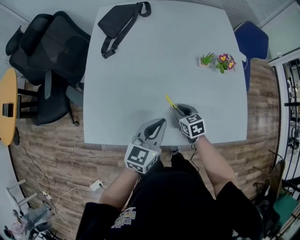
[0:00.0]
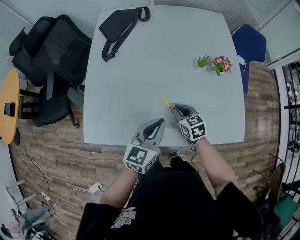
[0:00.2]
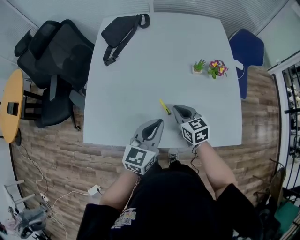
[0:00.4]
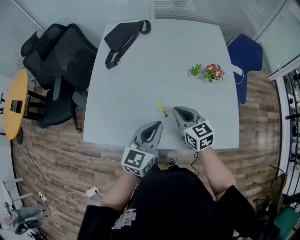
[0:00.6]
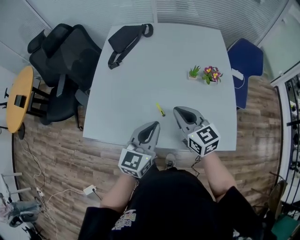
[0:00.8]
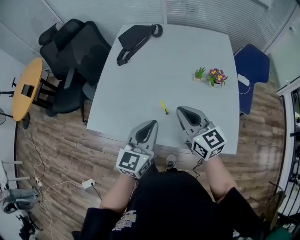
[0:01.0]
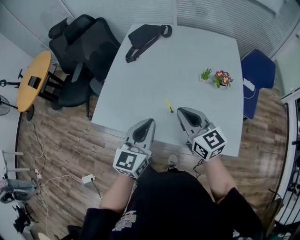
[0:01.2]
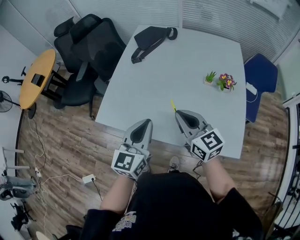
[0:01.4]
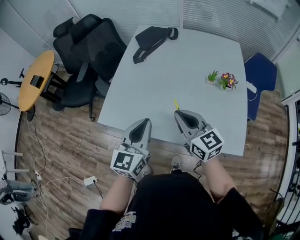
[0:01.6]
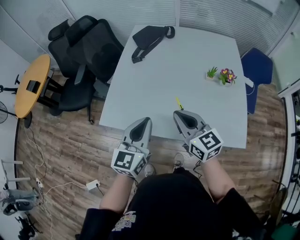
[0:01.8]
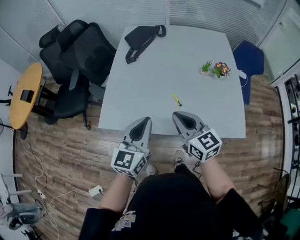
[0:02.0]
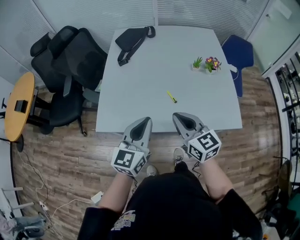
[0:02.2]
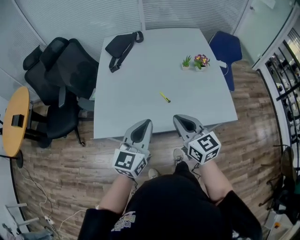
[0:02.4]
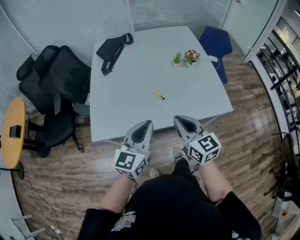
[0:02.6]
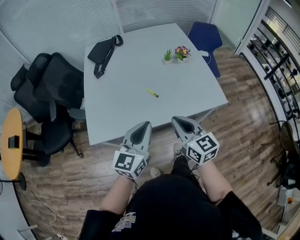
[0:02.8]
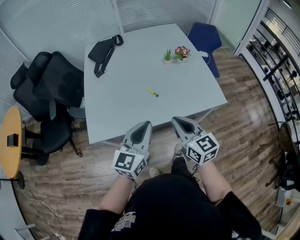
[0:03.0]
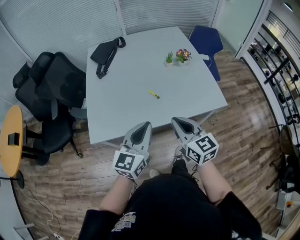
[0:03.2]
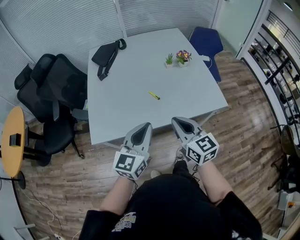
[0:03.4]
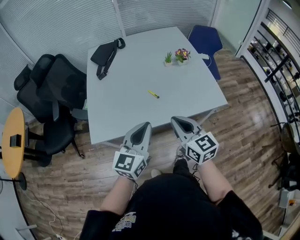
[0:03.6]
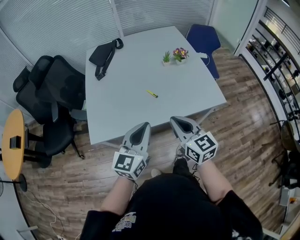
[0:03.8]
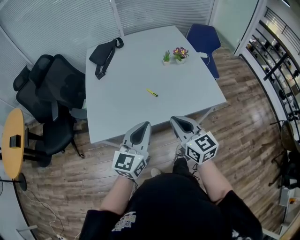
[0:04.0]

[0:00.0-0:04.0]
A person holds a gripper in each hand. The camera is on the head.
0:00.0 to 0:01.4: The right gripper moves upward, some 30 cm, and tips its fingers upward by about 40 degrees; the left gripper is displaced upward and backward by approximately 15 cm, and swivels roughly 30 degrees.
0:01.4 to 0:02.6: The right gripper shifts by approximately 15 cm, and changes its angle by roughly 30 degrees; the left gripper changes place by roughly 10 cm, and swivels approximately 30 degrees.
0:02.6 to 0:04.0: The grippers make only small movements.

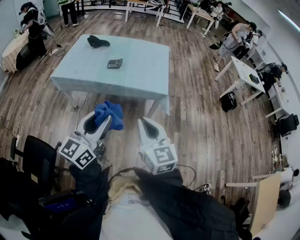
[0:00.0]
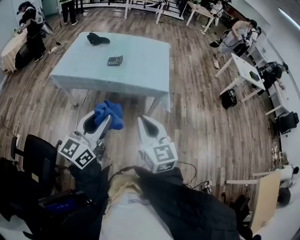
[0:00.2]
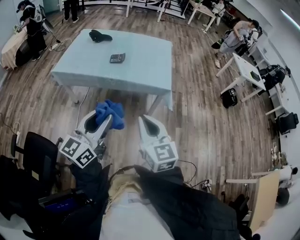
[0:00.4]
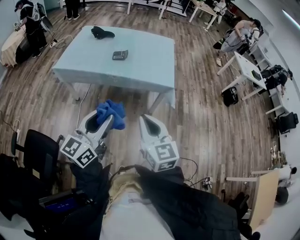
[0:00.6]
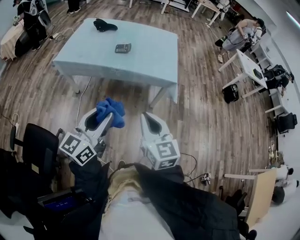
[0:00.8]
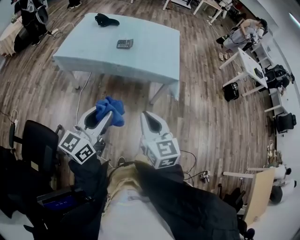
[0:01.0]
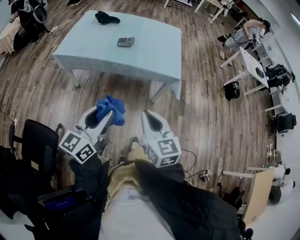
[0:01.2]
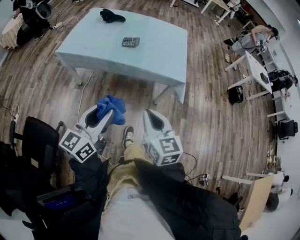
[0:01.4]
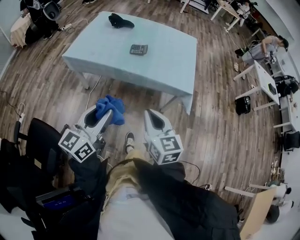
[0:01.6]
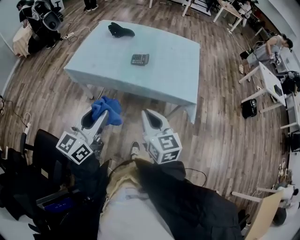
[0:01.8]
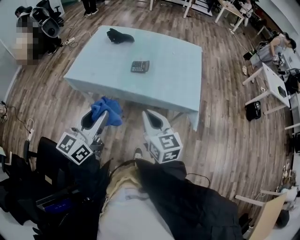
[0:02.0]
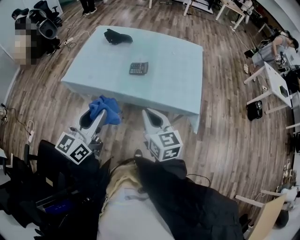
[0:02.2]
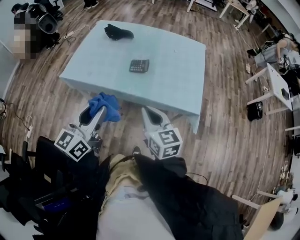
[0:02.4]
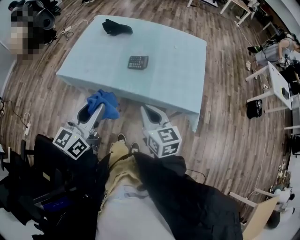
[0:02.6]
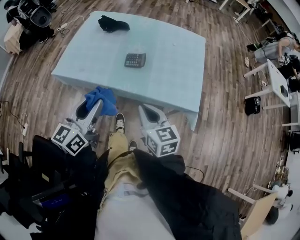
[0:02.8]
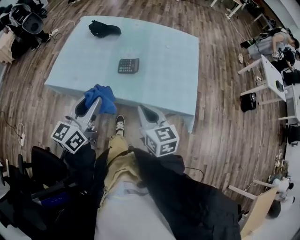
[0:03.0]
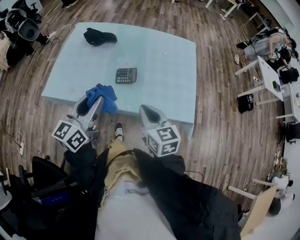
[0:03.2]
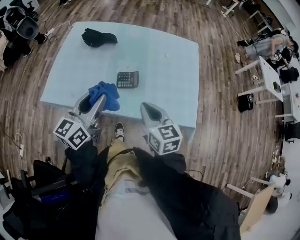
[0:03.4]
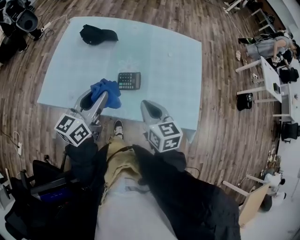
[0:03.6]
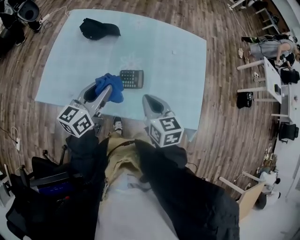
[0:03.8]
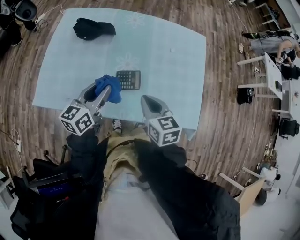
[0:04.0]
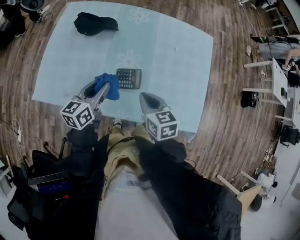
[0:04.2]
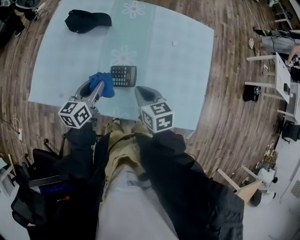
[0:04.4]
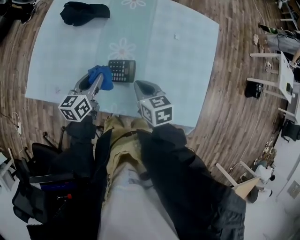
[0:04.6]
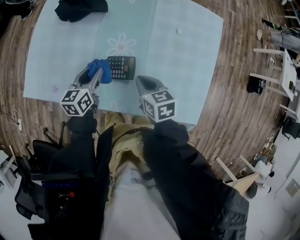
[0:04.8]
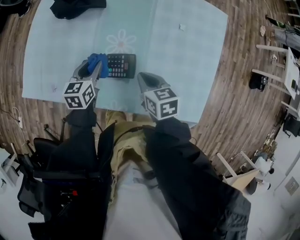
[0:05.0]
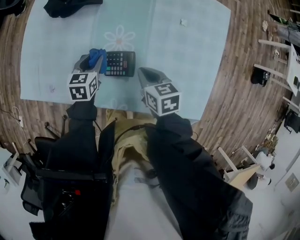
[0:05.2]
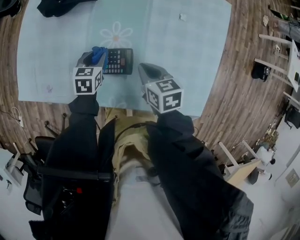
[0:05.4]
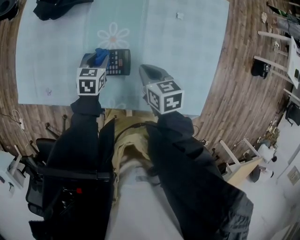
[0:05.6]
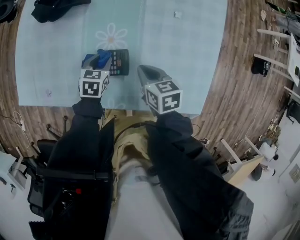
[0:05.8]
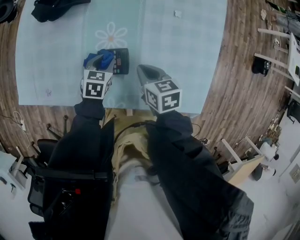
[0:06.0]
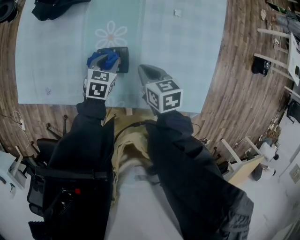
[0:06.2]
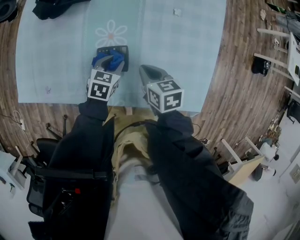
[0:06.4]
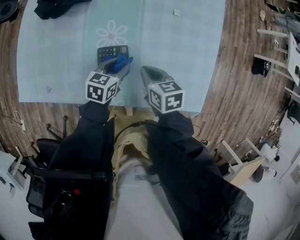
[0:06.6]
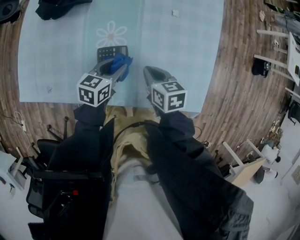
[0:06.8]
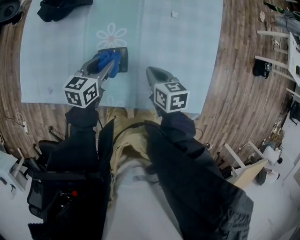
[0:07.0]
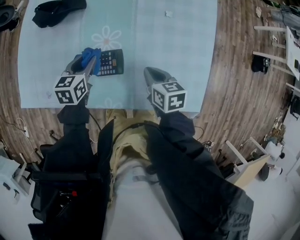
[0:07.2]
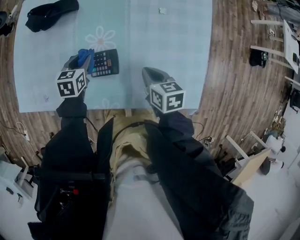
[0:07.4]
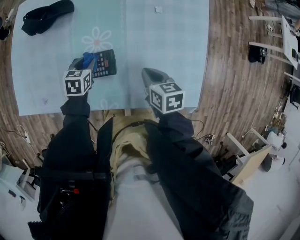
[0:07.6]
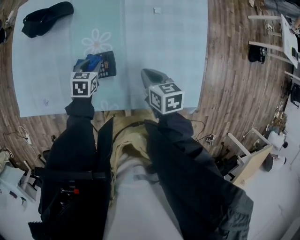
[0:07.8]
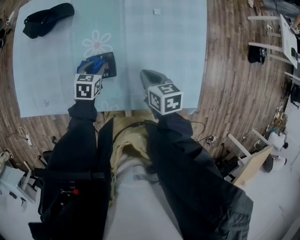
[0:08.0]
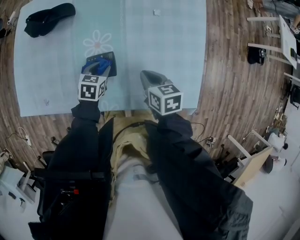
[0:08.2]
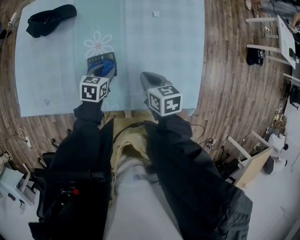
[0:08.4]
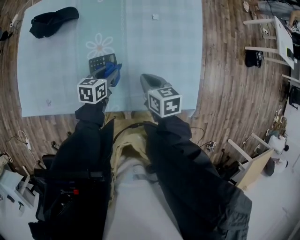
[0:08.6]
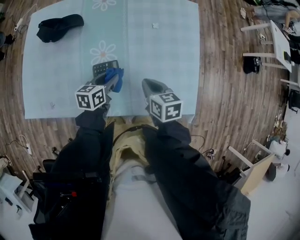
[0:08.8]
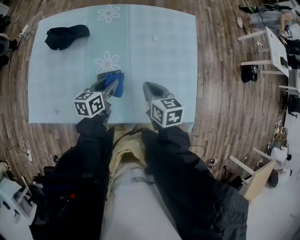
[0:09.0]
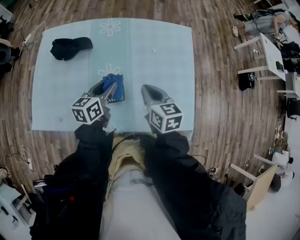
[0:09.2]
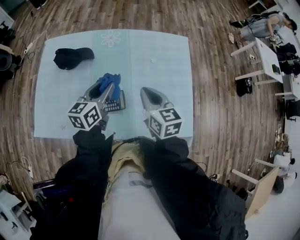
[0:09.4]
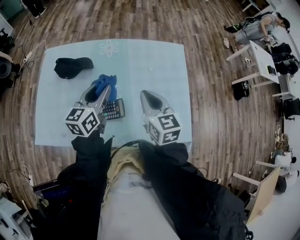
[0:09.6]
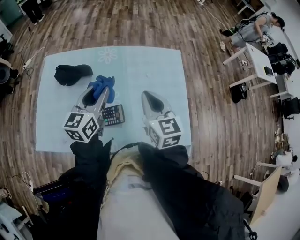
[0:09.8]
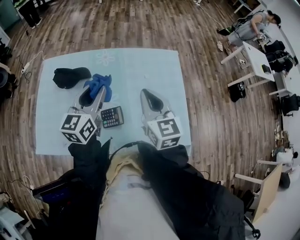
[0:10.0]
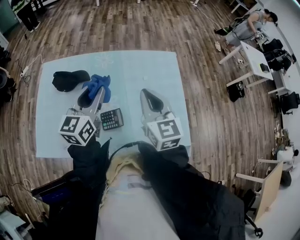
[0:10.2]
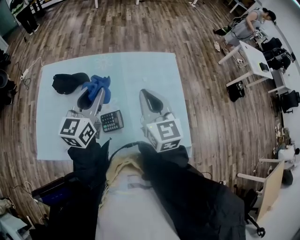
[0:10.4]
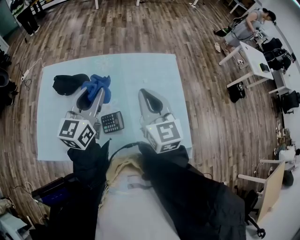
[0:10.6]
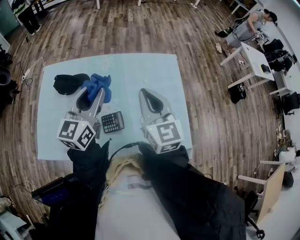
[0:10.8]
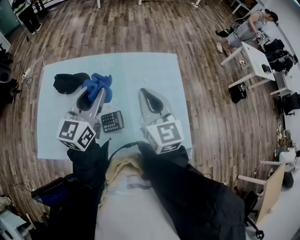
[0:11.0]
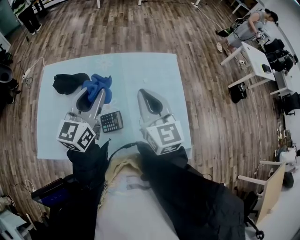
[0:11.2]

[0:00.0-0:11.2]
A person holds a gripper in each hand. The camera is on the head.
0:00.0 to 0:01.6: Both grippers move to the left, forward and downward, about 15 cm.
0:01.6 to 0:03.2: The grippers both shift forward by roughly 35 cm.
0:03.2 to 0:04.8: Both grippers move forward and downward, about 30 cm. The right gripper swivels approximately 30 degrees. Meanwhile the left gripper changes its angle by about 30 degrees.
0:04.8 to 0:06.4: The left gripper travels to the right and downward by some 15 cm, and turns by some 30 degrees, while the right gripper shifts by about 5 cm.
0:06.4 to 0:08.0: The left gripper reaches some 10 cm to the left, then returns.
0:08.0 to 0:09.6: Both grippers travel together upward, some 25 cm. The right gripper turns by approximately 30 degrees; the left gripper tips its fingers upward by about 40 degrees.
0:09.6 to 0:11.2: Both grippers move upward, roughly 10 cm.

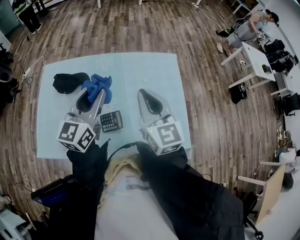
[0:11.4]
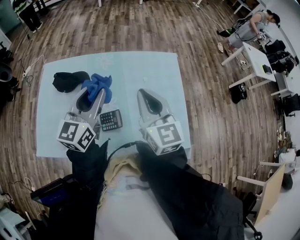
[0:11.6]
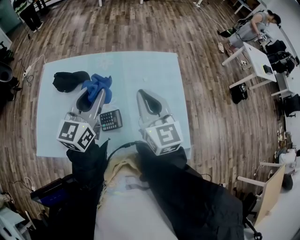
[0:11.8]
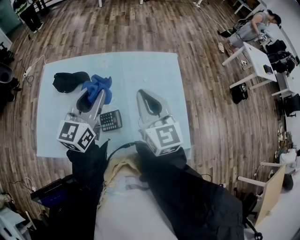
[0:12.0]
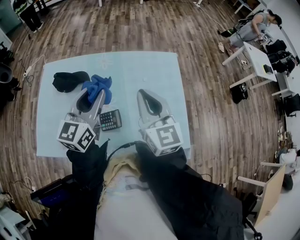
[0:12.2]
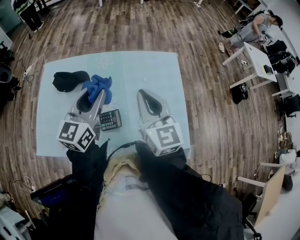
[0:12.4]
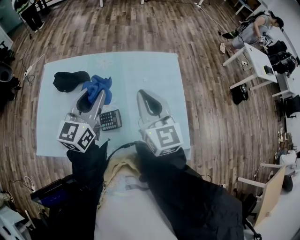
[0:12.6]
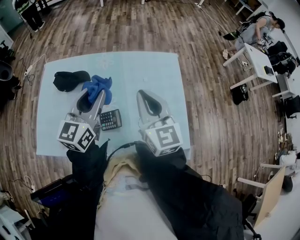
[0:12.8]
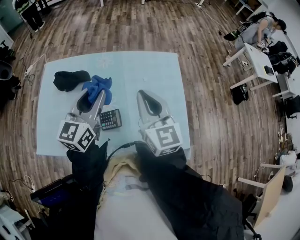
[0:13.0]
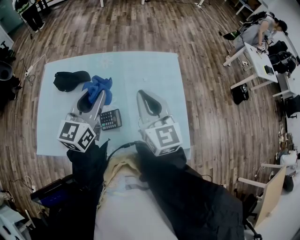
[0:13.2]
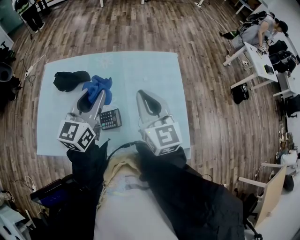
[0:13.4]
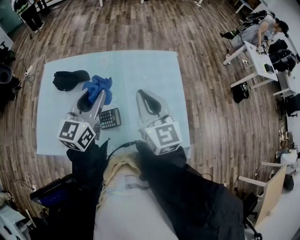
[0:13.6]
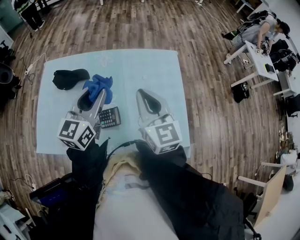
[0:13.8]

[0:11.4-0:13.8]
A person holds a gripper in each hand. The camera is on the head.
0:11.4 to 0:12.6: Both grippers stay about where they are.
0:12.6 to 0:13.8: Both grippers stay put.

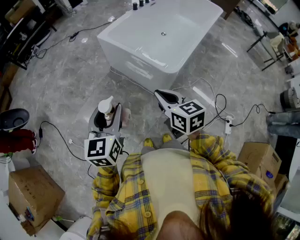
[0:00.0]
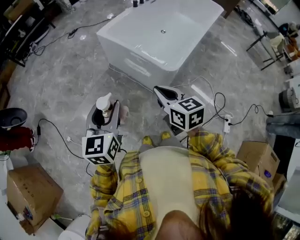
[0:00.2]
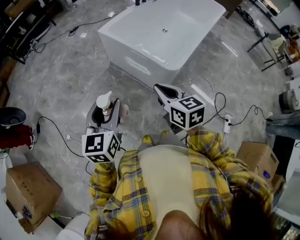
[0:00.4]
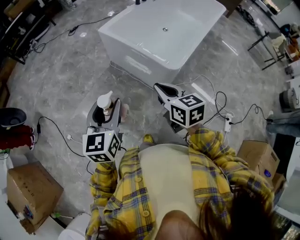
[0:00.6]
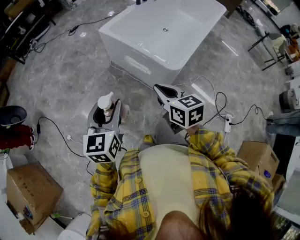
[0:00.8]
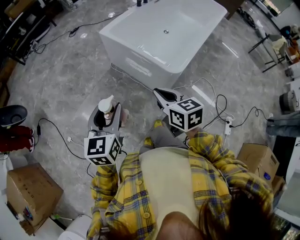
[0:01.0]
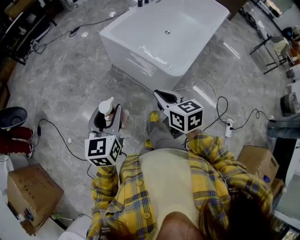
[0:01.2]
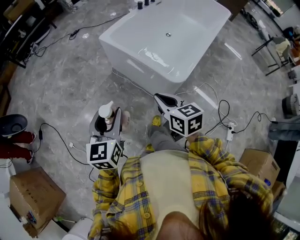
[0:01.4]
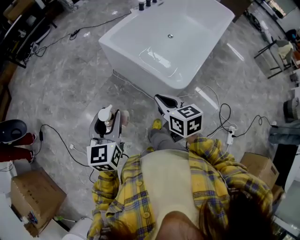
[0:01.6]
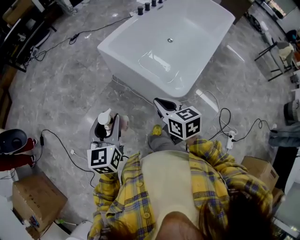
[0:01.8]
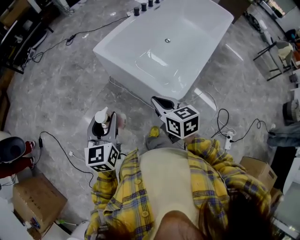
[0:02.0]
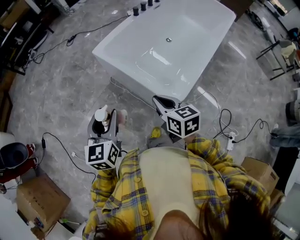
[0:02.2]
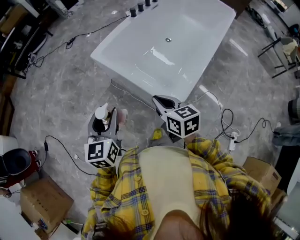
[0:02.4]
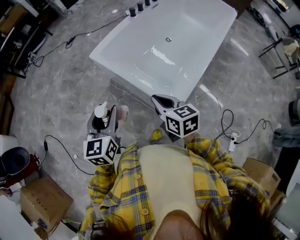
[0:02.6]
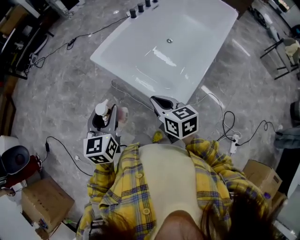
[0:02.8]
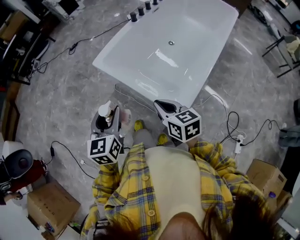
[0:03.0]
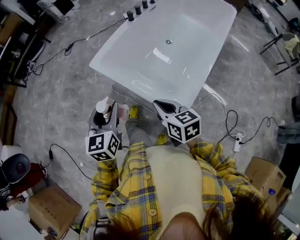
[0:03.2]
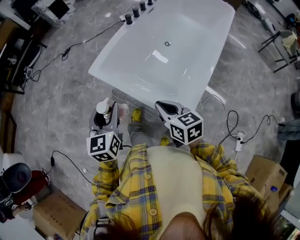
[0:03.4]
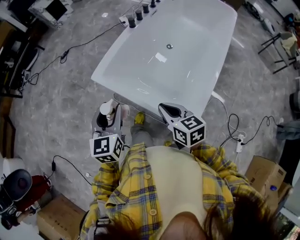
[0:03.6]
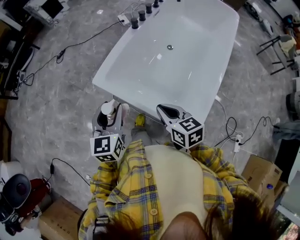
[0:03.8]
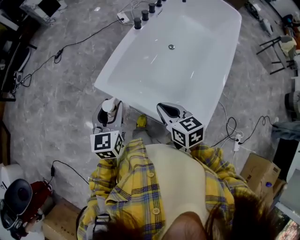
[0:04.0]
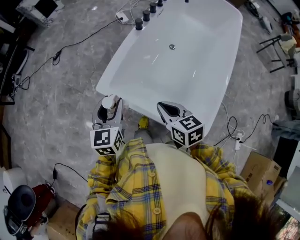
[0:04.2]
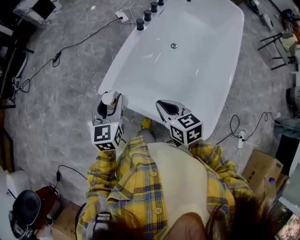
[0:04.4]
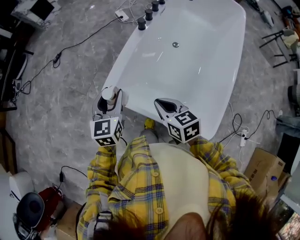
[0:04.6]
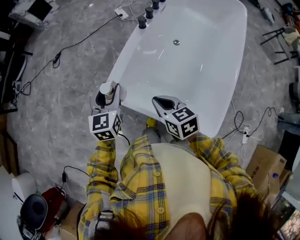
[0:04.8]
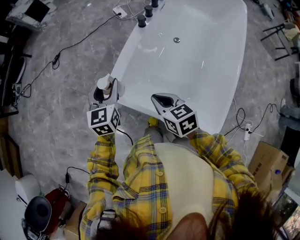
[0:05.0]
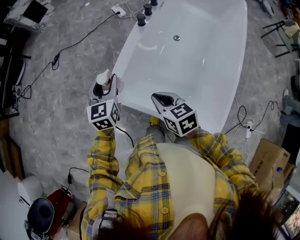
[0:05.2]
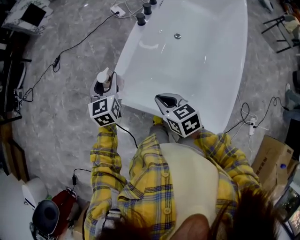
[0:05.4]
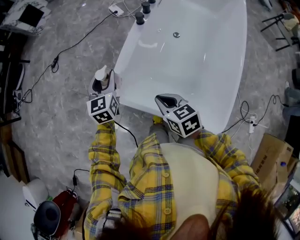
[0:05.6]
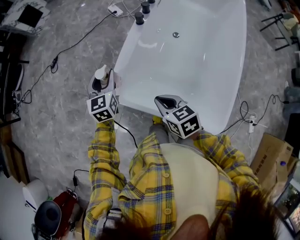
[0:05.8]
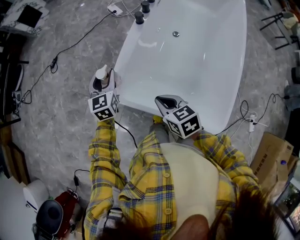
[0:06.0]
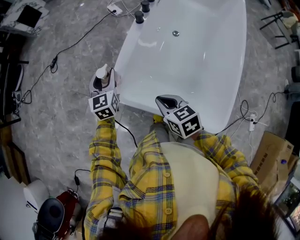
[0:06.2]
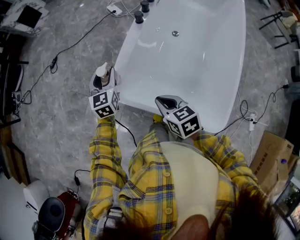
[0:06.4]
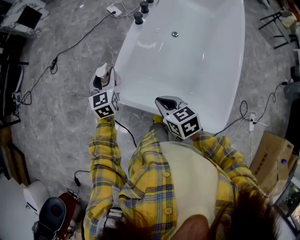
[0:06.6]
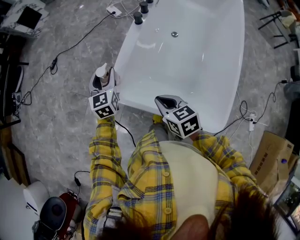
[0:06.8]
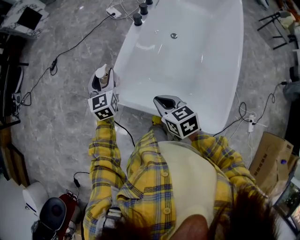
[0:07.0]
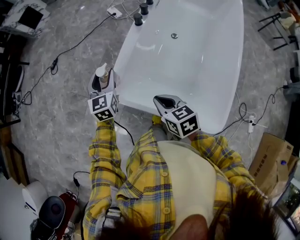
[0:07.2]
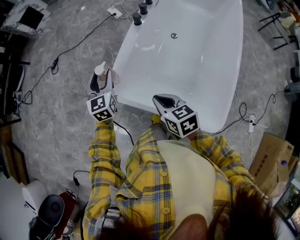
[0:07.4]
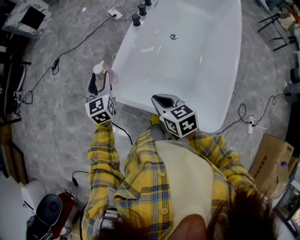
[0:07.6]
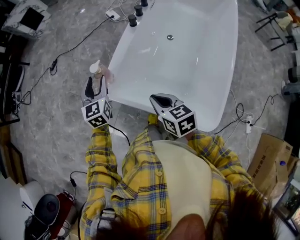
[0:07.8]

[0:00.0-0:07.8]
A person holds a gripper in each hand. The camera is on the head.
0:00.0 to 0:01.6: The two grippers go some 10 cm forward.
0:01.6 to 0:03.2: The two grippers go some 20 cm forward and to the right.
0:03.2 to 0:04.6: The two grippers go some 30 cm forward.
0:04.6 to 0:06.2: The left gripper goes roughly 15 cm forward and downward; the right gripper moves roughly 5 cm.
0:06.2 to 0:07.8: The left gripper moves some 5 cm.
